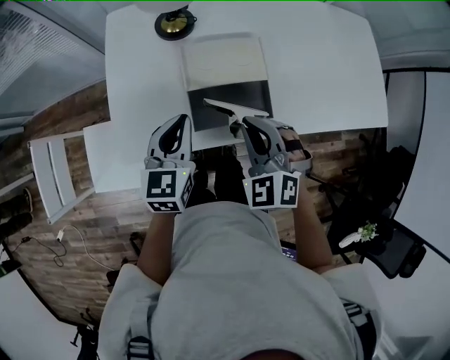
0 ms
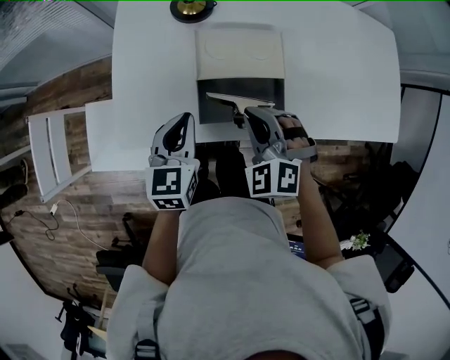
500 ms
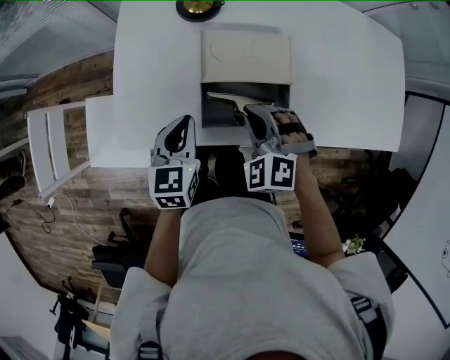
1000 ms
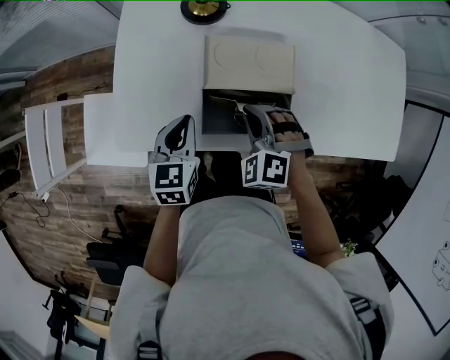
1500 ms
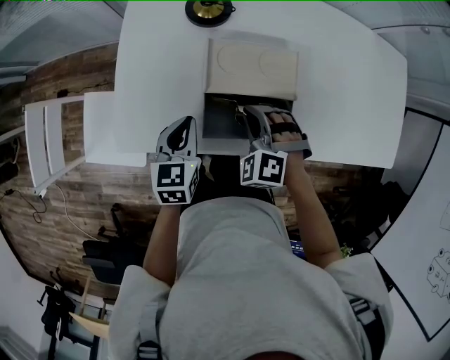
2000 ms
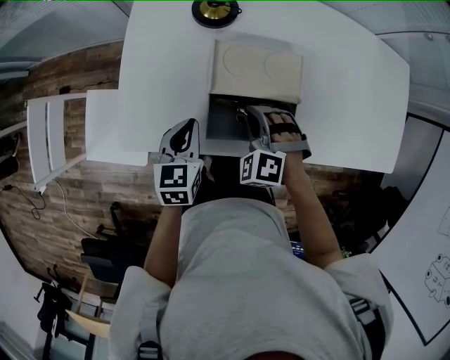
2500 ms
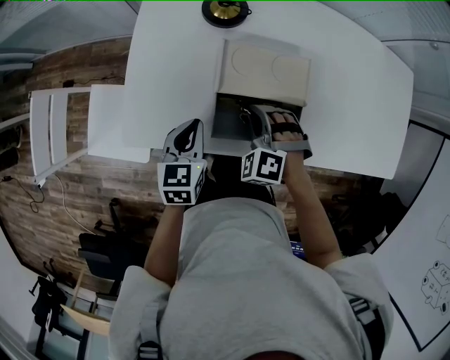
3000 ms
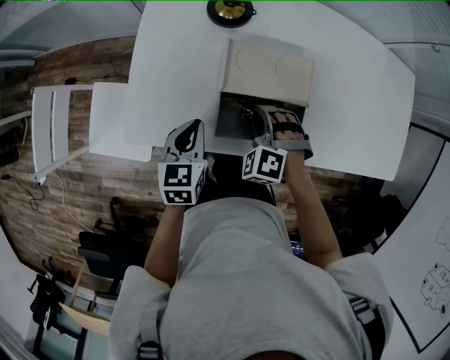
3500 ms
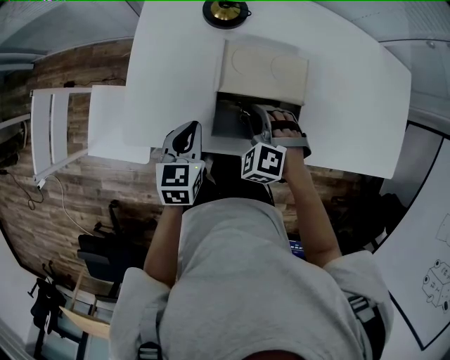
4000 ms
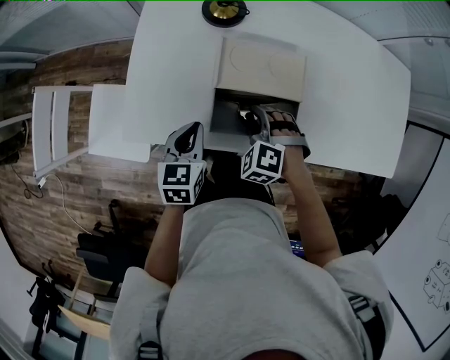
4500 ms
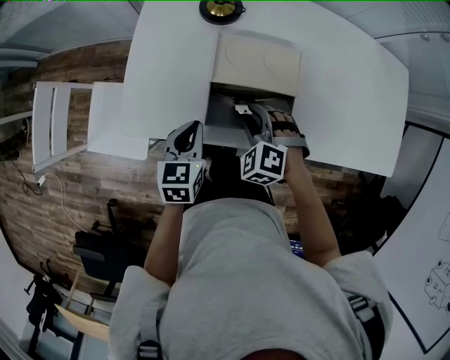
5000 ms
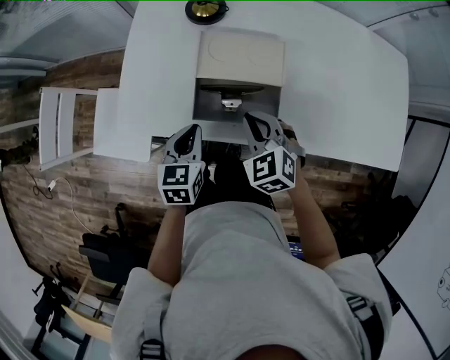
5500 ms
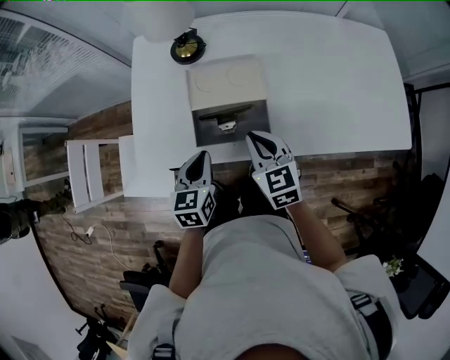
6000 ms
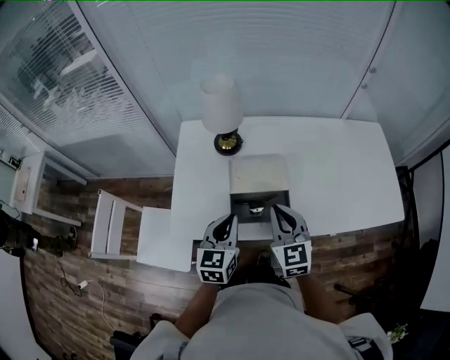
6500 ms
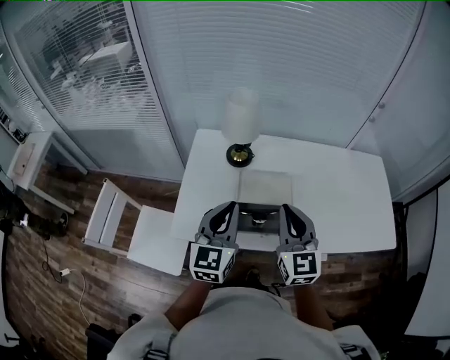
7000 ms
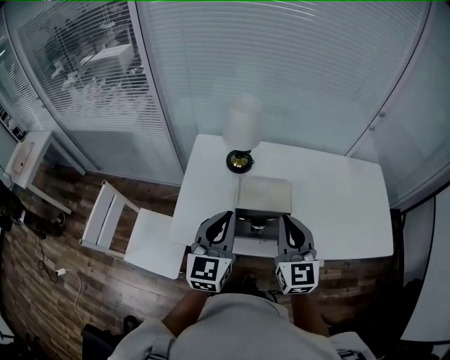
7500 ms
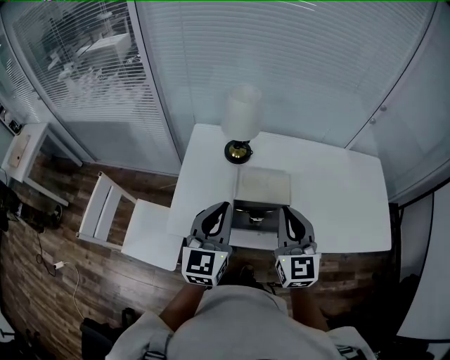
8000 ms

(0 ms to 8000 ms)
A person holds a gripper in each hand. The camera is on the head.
0 ms - 2000 ms: The left gripper goes roughly 10 cm downward. Meanwhile the right gripper heads downward and forward, covering some 15 cm, and rotates some 30 degrees.
2000 ms - 4000 ms: There are only small adjustments of the grippers.
4000 ms - 6000 ms: The right gripper heads upward, to the right and backward, covering roughly 15 cm, twists some 60 degrees clockwise, seen from behind, and opens, then closes again; the left gripper shifts approximately 10 cm to the right.
6000 ms - 8000 ms: The two grippers go roughly 20 cm upward. The right gripper rotates approximately 30 degrees; the left gripper changes its angle by some 30 degrees.

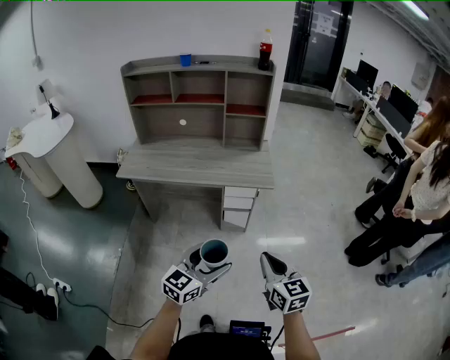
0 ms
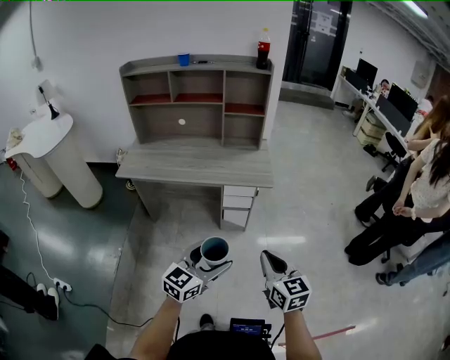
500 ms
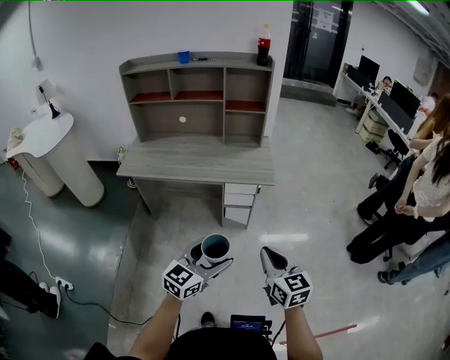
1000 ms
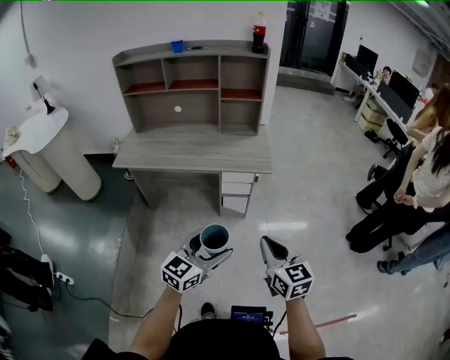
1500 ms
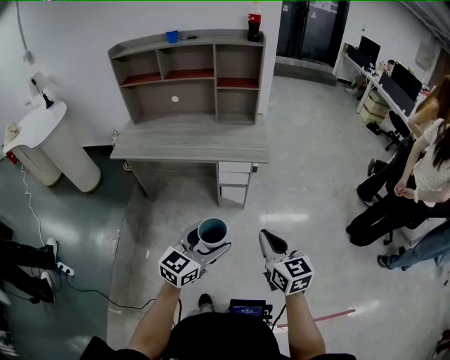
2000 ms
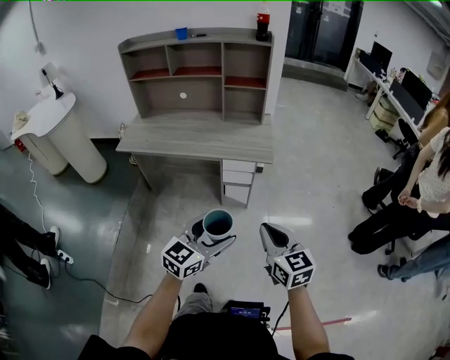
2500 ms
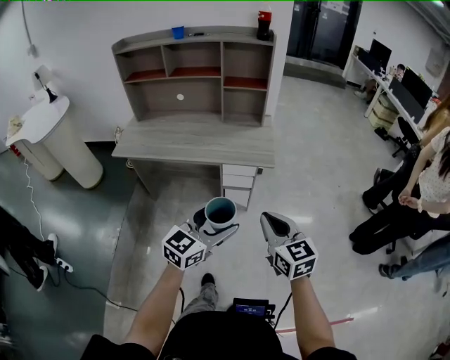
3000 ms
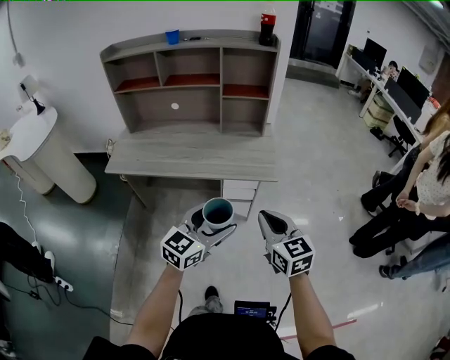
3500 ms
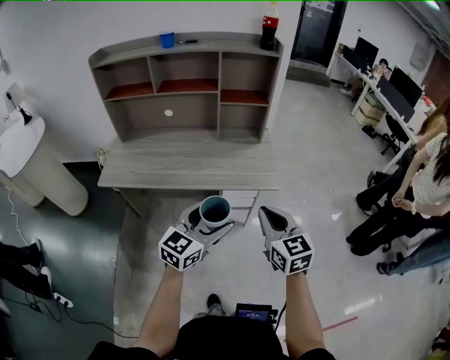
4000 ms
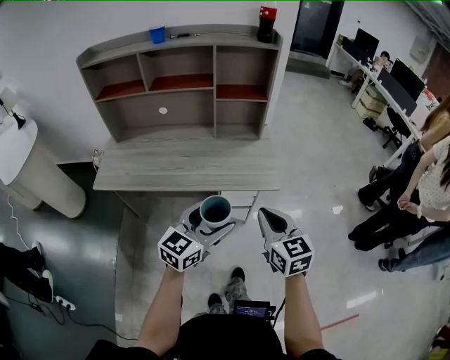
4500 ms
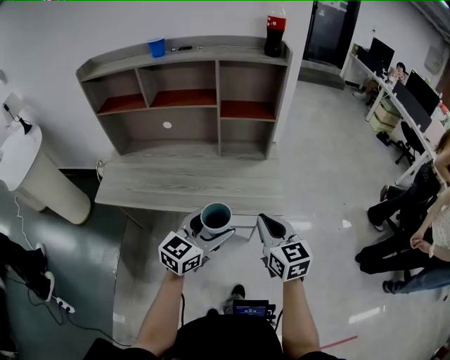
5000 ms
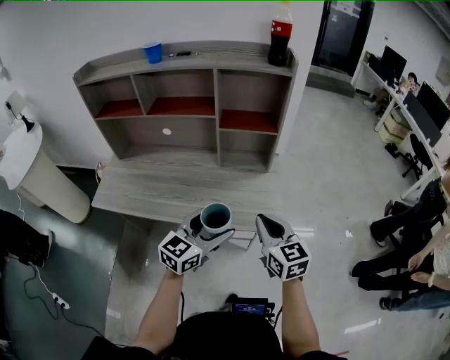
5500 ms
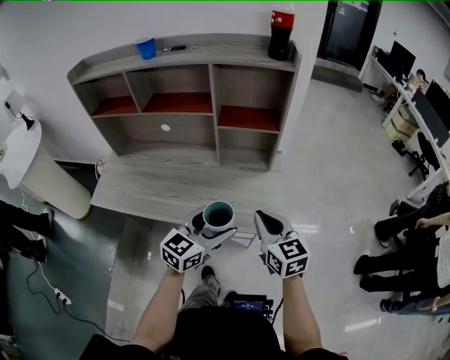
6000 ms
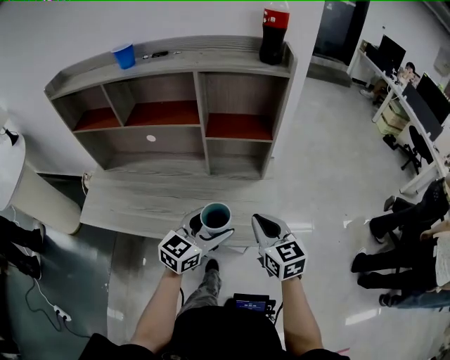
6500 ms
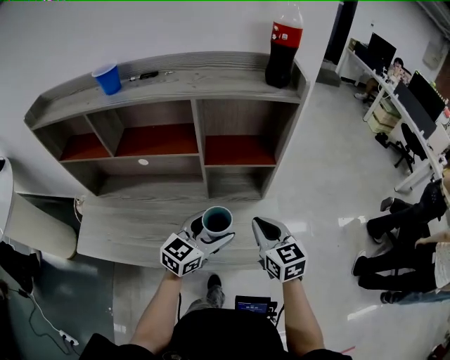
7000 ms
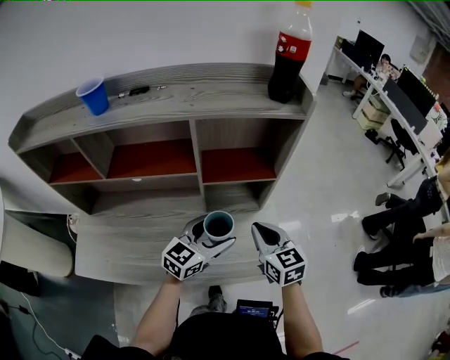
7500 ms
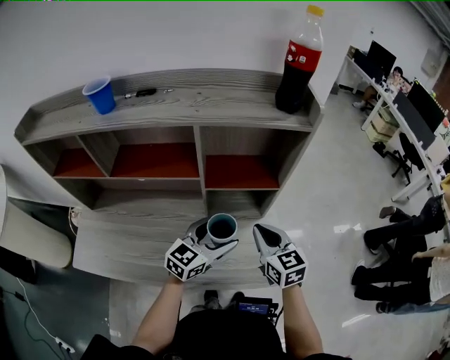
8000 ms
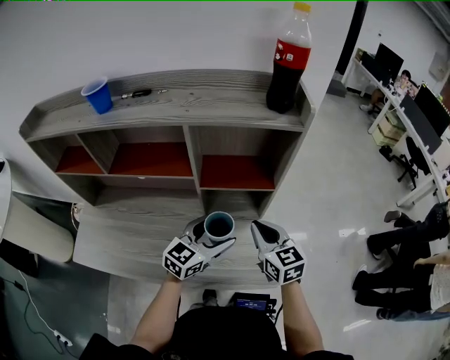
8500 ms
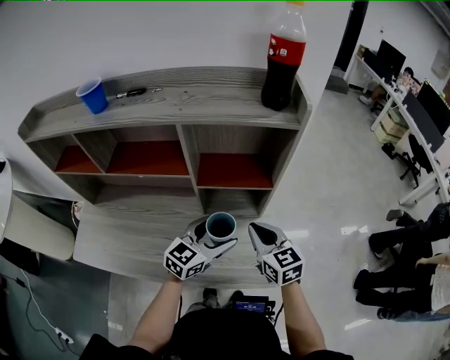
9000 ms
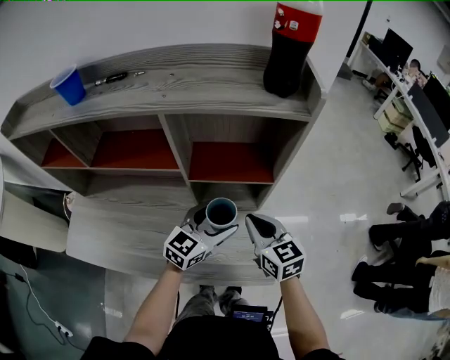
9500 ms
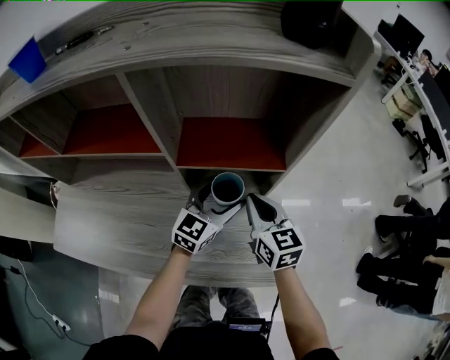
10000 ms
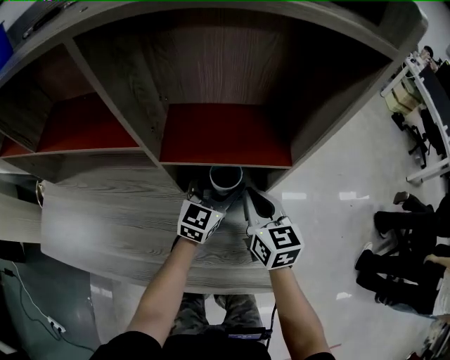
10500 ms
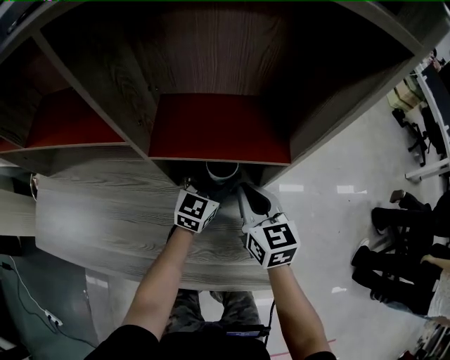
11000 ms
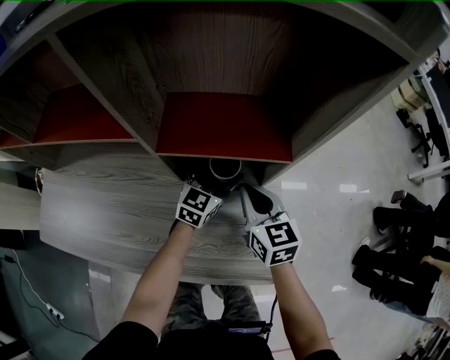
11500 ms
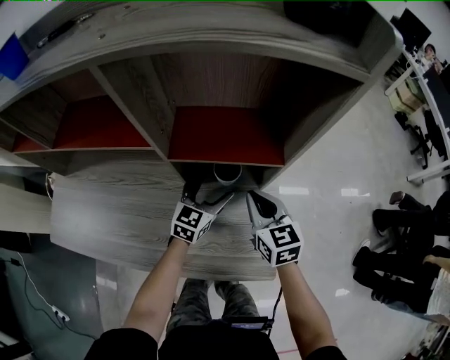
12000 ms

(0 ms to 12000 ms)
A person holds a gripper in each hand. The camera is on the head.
0 ms - 2000 ms: The grippers make only small movements.
2000 ms - 4000 ms: Both grippers move forward and to the left, approximately 25 cm.
4000 ms - 6000 ms: Both grippers travel together forward, approximately 25 cm.
6000 ms - 8000 ms: The two grippers go some 20 cm forward.
8000 ms - 10000 ms: The right gripper moves downward and forward, approximately 15 cm. Meanwhile the left gripper travels forward and downward by approximately 15 cm.
10000 ms - 12000 ms: The left gripper goes some 10 cm downward.

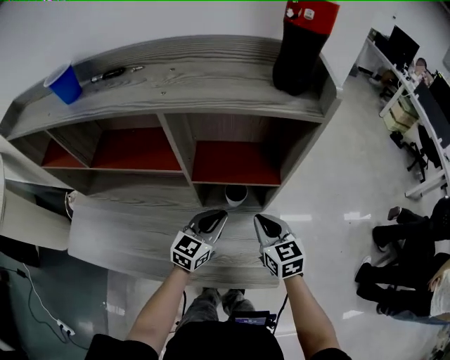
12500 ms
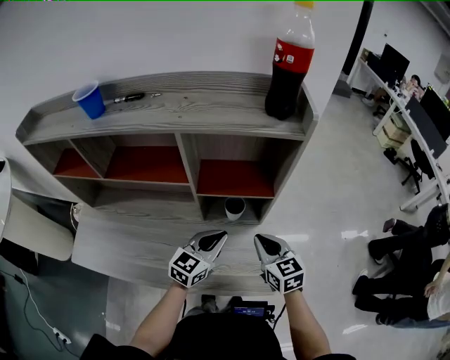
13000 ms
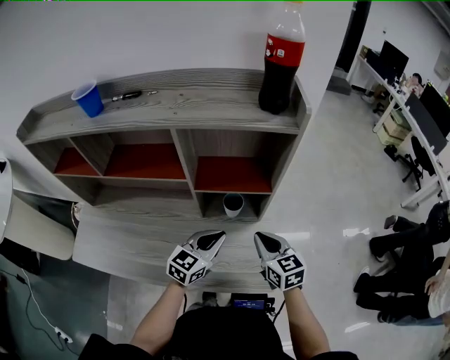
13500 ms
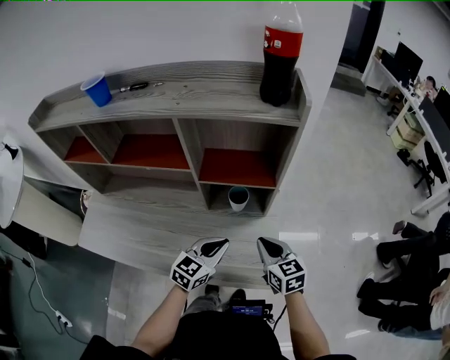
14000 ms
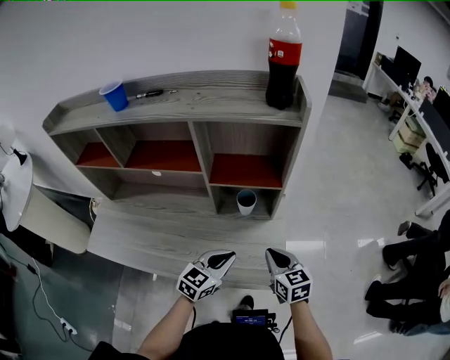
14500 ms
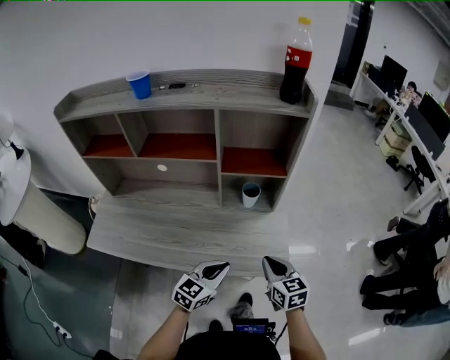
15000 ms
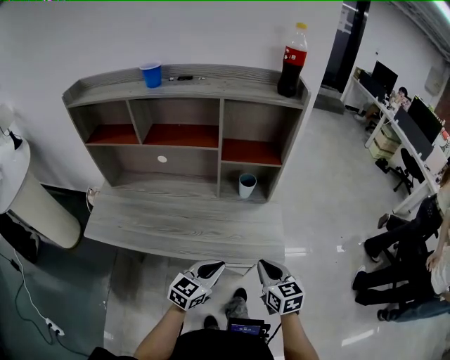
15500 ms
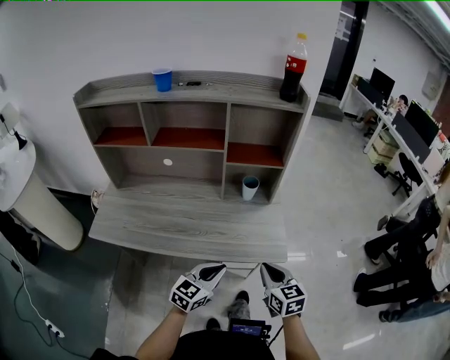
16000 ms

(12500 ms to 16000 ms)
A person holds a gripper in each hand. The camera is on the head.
12500 ms - 14500 ms: The two grippers go about 15 cm backward.
14500 ms - 16000 ms: Both grippers travel together backward, roughly 20 cm.

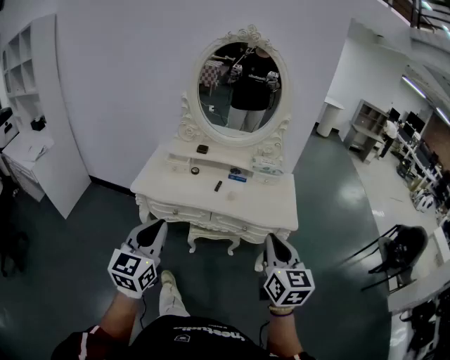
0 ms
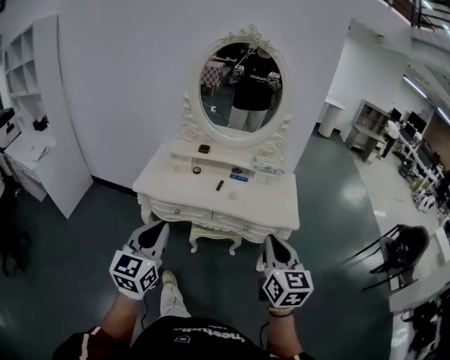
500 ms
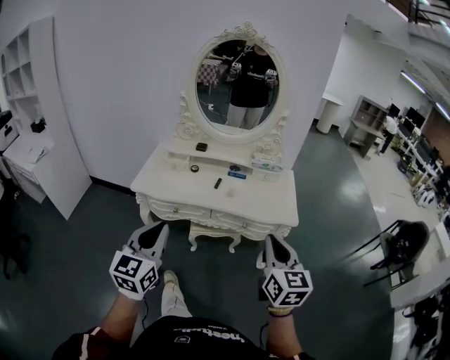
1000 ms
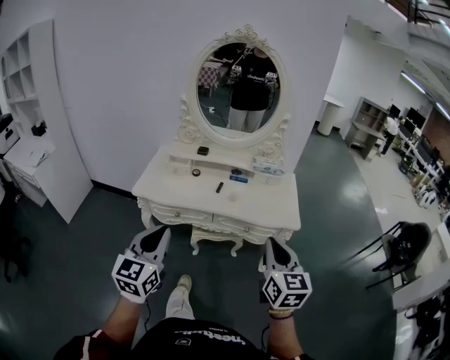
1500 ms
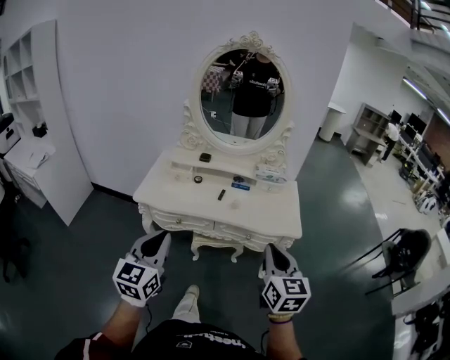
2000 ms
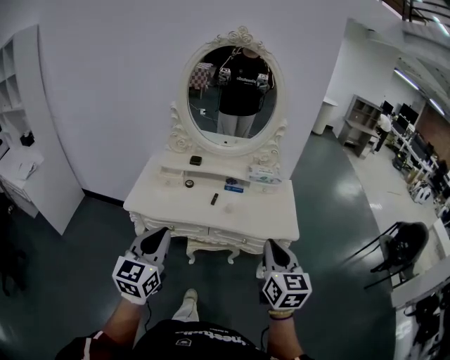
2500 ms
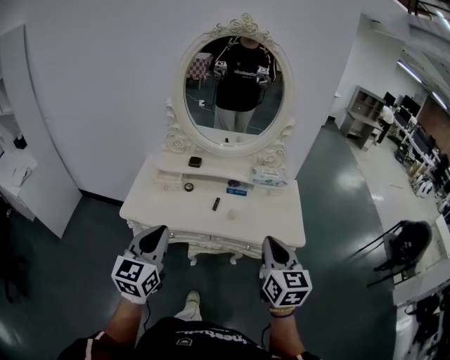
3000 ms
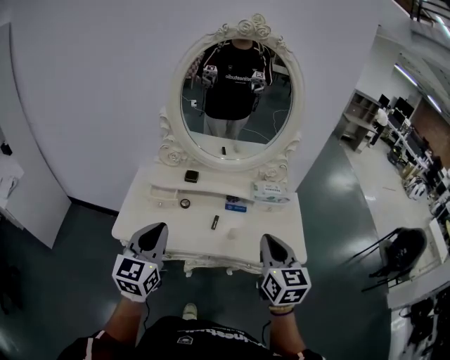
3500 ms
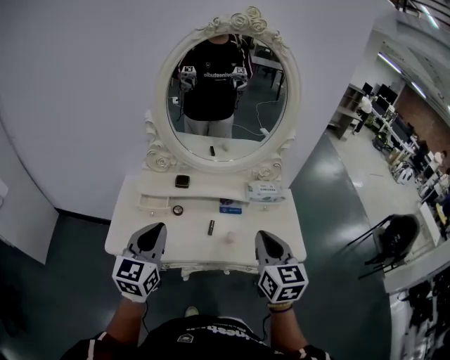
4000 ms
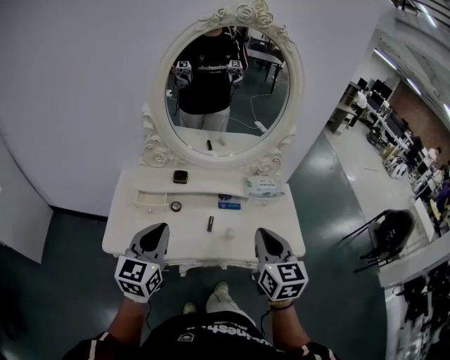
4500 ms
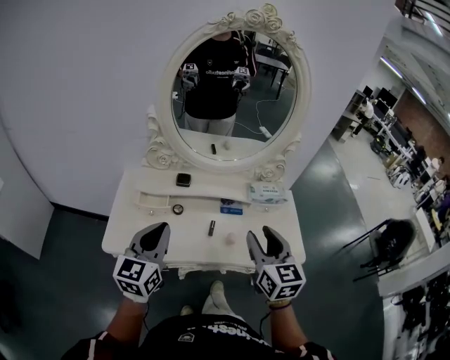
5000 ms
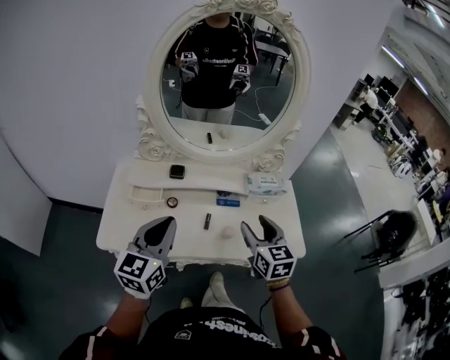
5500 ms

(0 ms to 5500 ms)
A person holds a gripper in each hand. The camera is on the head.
0 ms - 2000 ms: The grippers move only a little.
2000 ms - 3500 ms: The grippers both shift forward by some 25 cm.
3500 ms - 5500 ms: The left gripper shifts about 10 cm forward. Meanwhile the right gripper goes approximately 15 cm forward and downward, and opens.
